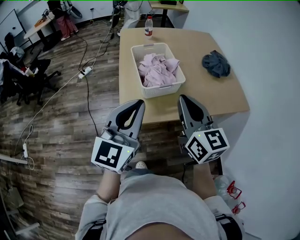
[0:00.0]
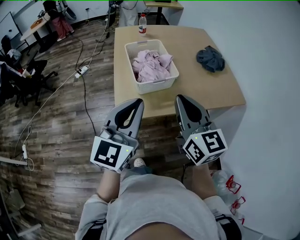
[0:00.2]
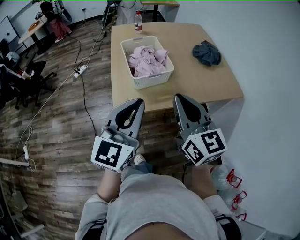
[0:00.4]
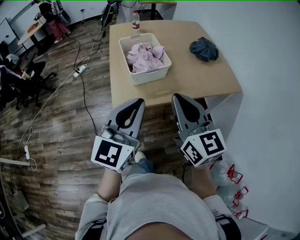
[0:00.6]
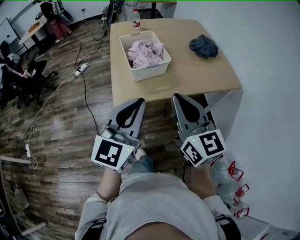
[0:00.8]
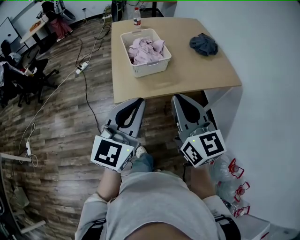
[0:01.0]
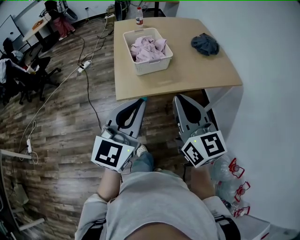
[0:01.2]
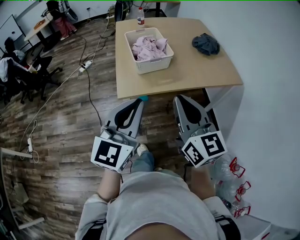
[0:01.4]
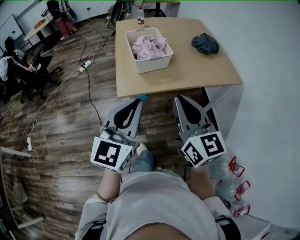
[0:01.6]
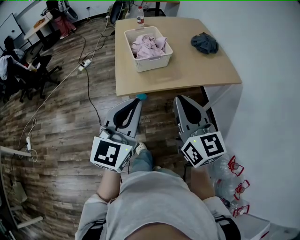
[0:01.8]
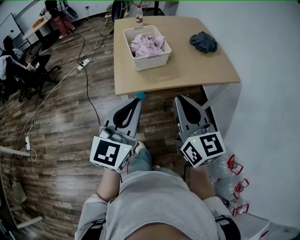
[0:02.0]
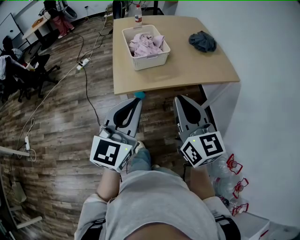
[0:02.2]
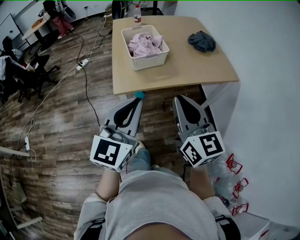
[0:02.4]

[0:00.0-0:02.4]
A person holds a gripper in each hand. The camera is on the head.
0:00.0 to 0:01.2: The left gripper travels backward and to the right by some 15 cm, while the right gripper heads backward, covering approximately 15 cm.
0:01.2 to 0:02.4: The grippers move only a little.

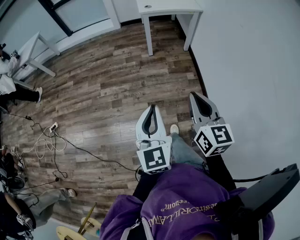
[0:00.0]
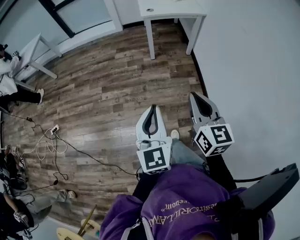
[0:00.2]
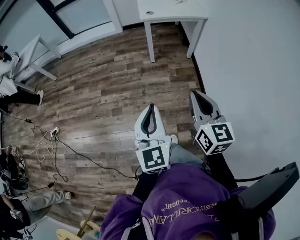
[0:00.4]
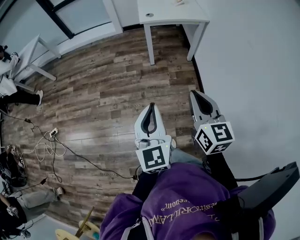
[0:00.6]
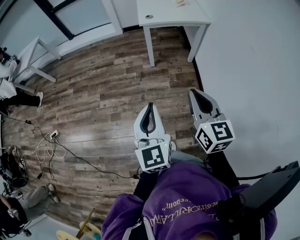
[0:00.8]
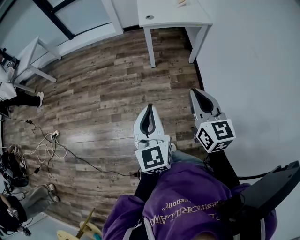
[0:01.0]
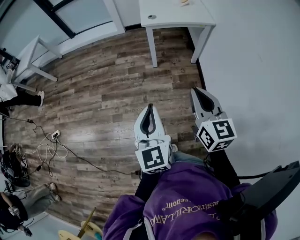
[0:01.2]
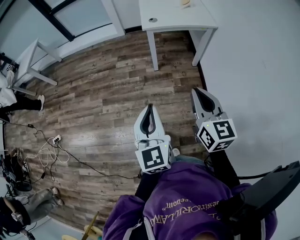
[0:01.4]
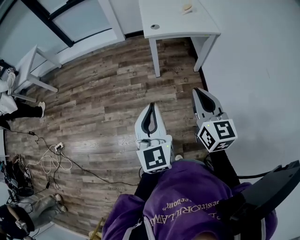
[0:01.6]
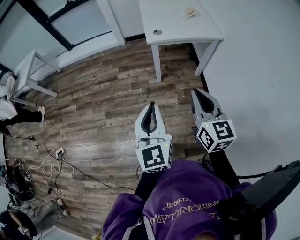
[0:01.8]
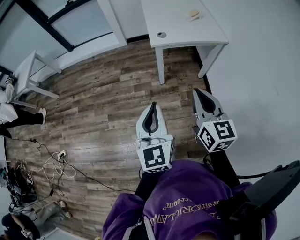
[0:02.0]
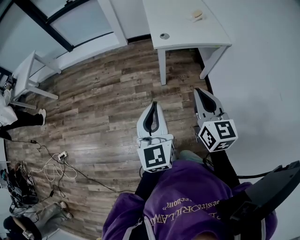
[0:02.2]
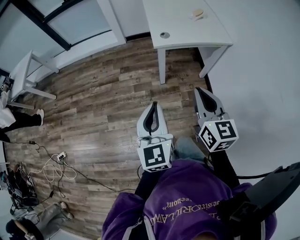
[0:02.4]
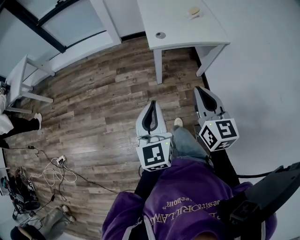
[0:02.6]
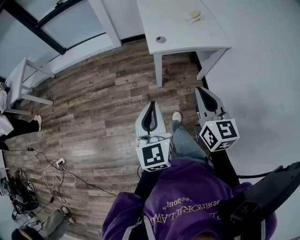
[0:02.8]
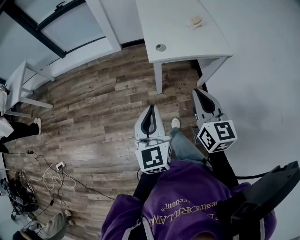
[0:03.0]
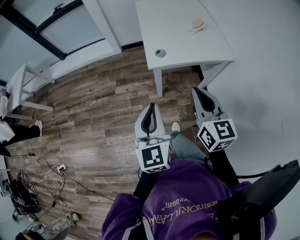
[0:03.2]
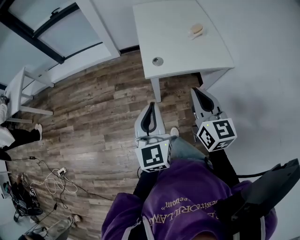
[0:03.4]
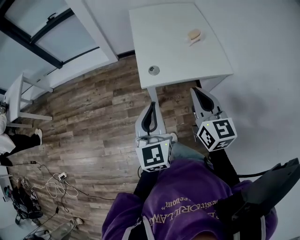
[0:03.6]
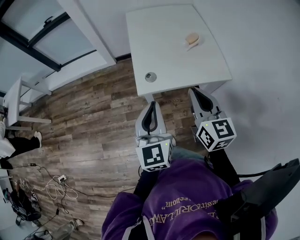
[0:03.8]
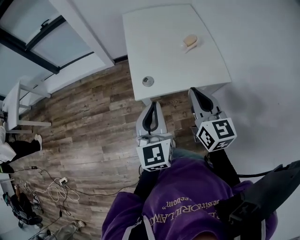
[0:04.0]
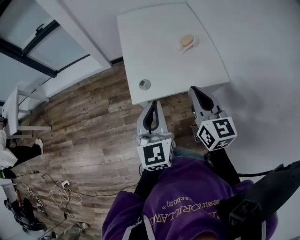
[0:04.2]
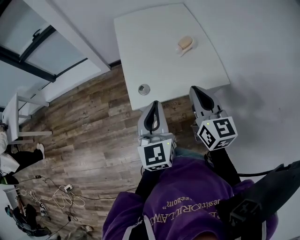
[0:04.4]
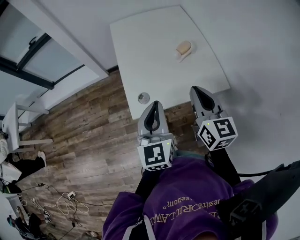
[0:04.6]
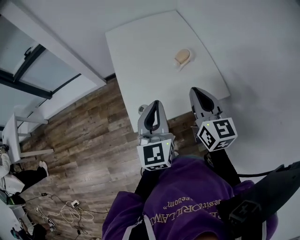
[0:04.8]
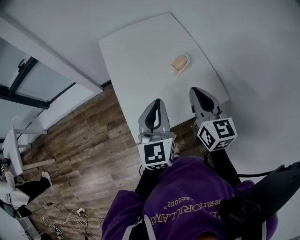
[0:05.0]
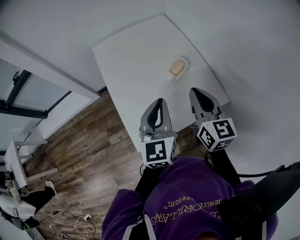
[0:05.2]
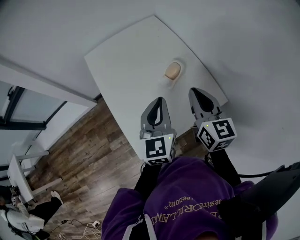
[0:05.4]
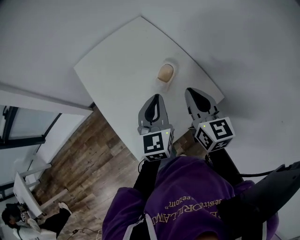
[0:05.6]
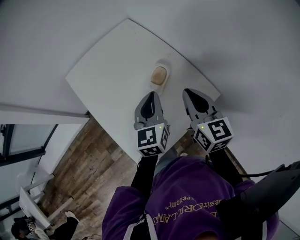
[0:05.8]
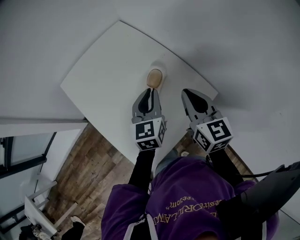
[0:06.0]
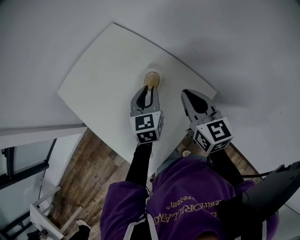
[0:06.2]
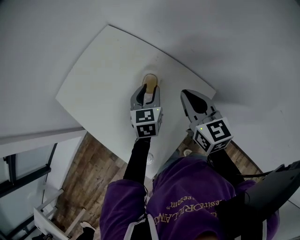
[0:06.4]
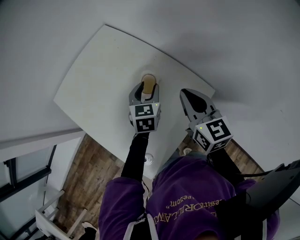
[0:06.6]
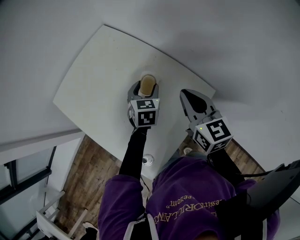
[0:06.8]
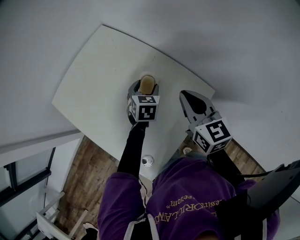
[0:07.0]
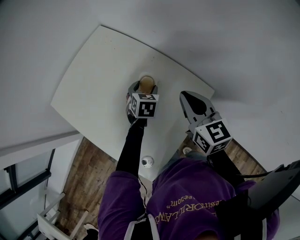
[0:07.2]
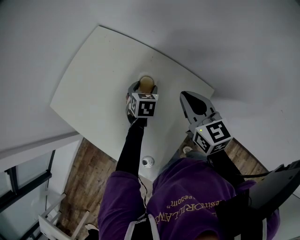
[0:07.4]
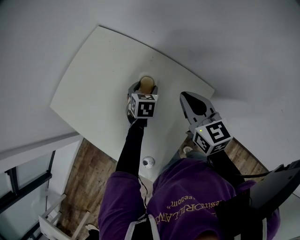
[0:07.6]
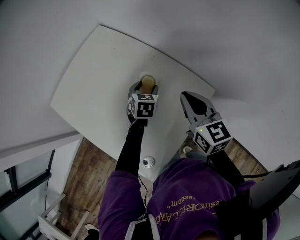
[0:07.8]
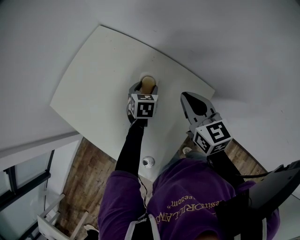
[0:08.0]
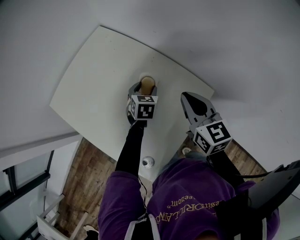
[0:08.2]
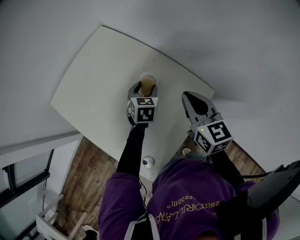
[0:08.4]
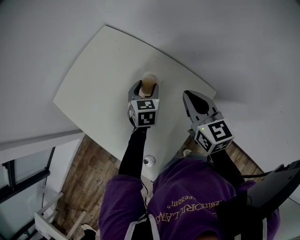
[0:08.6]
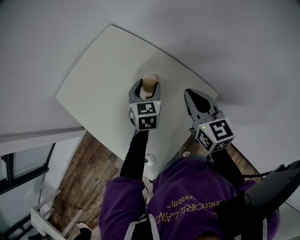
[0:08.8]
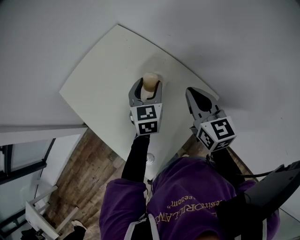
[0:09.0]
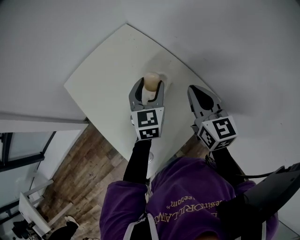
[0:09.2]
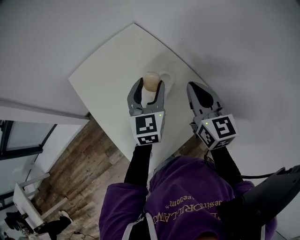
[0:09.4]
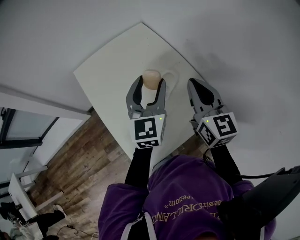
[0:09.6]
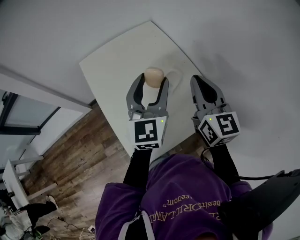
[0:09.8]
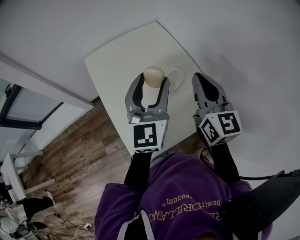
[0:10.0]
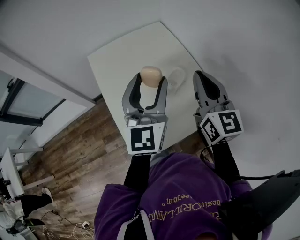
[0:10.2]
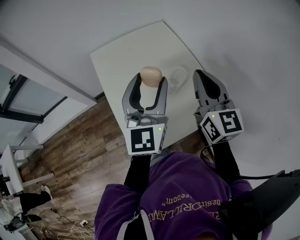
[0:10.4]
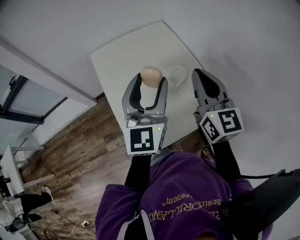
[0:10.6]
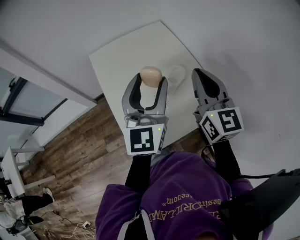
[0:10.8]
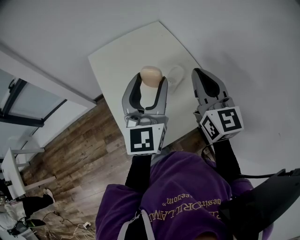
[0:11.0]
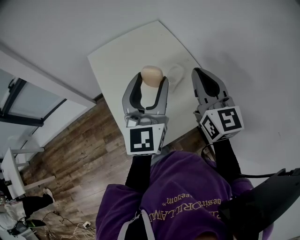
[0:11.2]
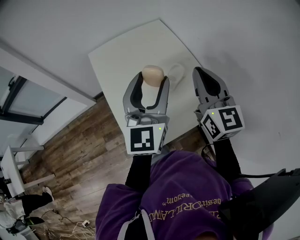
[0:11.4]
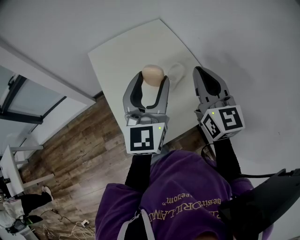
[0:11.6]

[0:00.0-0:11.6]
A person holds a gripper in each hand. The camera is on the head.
0:00.0 to 0:01.4: The two grippers go some 30 cm forward.
0:01.4 to 0:02.8: Both grippers move forward, about 25 cm.
0:02.8 to 0:04.4: The grippers both shift forward and to the right by roughly 35 cm.
0:04.4 to 0:05.8: The right gripper changes place by roughly 25 cm, and swivels some 20 degrees; the left gripper ends up some 35 cm from where it was, and rotates some 30 degrees.
0:05.8 to 0:07.2: The right gripper ends up approximately 5 cm from where it was, while the left gripper goes about 20 cm downward and forward, angles its fingers downward, by approximately 40 degrees, and opens up.
0:07.2 to 0:08.8: The left gripper goes approximately 10 cm upward, and turns by about 20 degrees.
0:08.8 to 0:10.2: The right gripper heads upward and to the left, covering about 15 cm, and rotates roughly 20 degrees. The left gripper is displaced upward, backward and to the left by roughly 30 cm, and tips its fingers upward by roughly 40 degrees.
0:10.2 to 0:11.6: The grippers make only small movements.

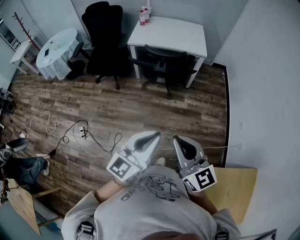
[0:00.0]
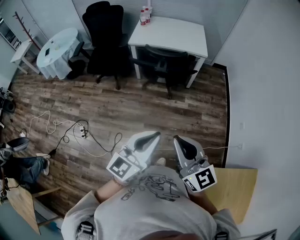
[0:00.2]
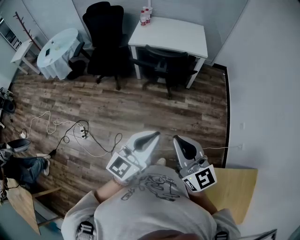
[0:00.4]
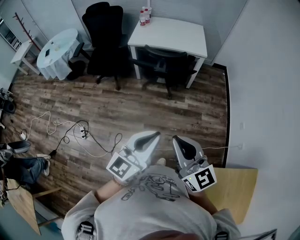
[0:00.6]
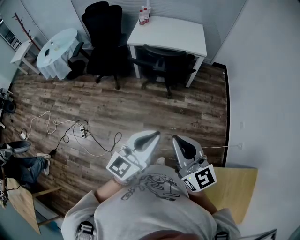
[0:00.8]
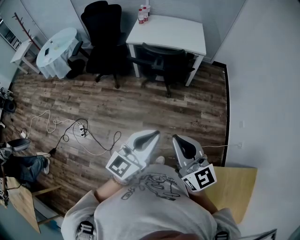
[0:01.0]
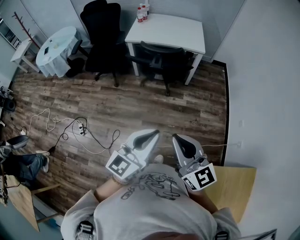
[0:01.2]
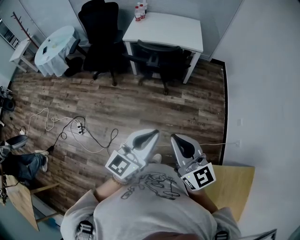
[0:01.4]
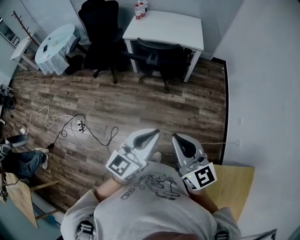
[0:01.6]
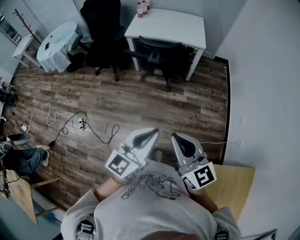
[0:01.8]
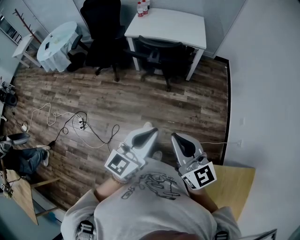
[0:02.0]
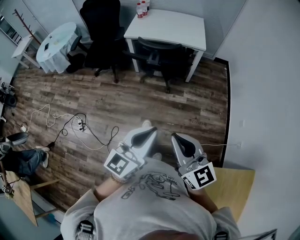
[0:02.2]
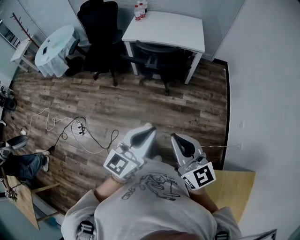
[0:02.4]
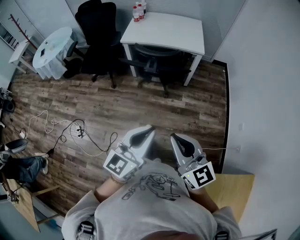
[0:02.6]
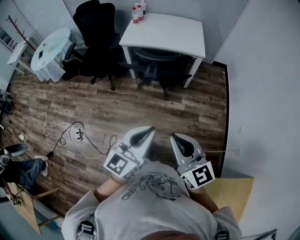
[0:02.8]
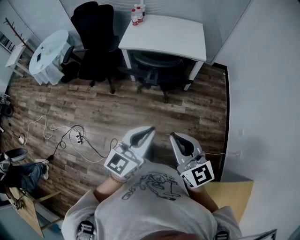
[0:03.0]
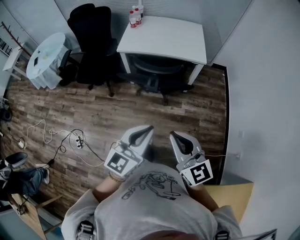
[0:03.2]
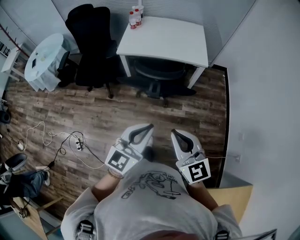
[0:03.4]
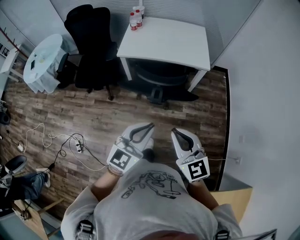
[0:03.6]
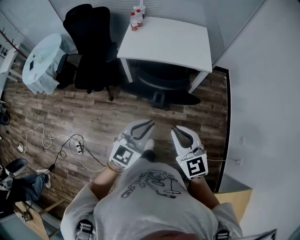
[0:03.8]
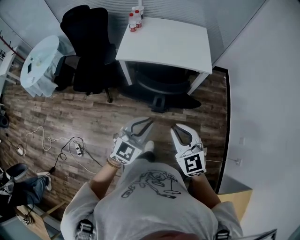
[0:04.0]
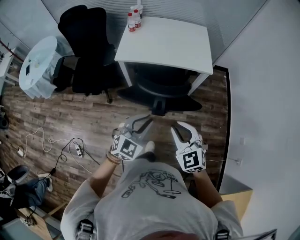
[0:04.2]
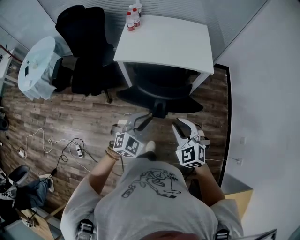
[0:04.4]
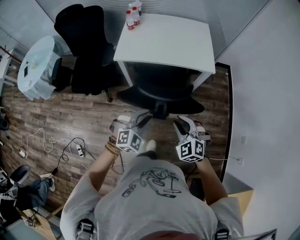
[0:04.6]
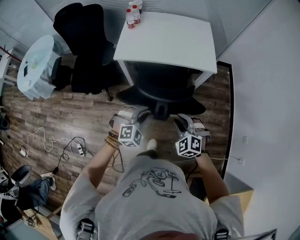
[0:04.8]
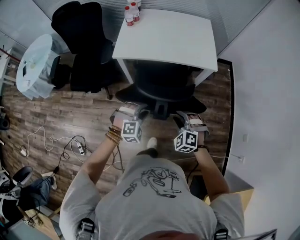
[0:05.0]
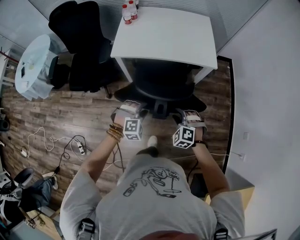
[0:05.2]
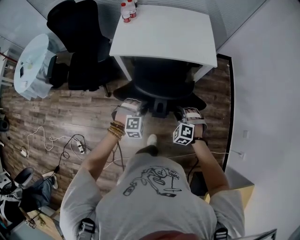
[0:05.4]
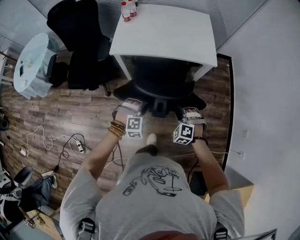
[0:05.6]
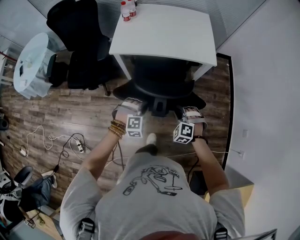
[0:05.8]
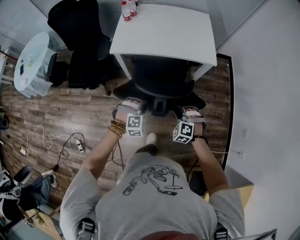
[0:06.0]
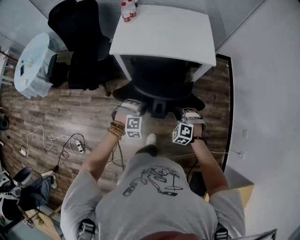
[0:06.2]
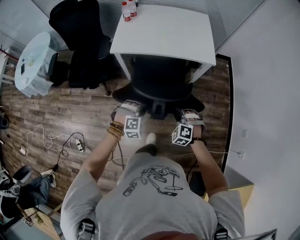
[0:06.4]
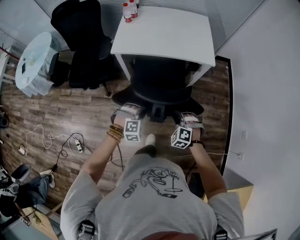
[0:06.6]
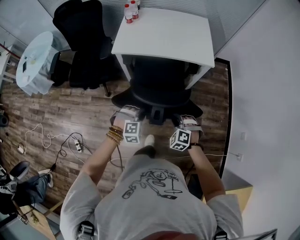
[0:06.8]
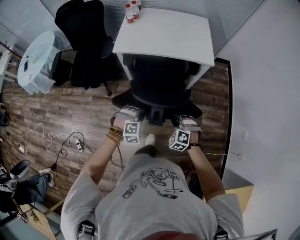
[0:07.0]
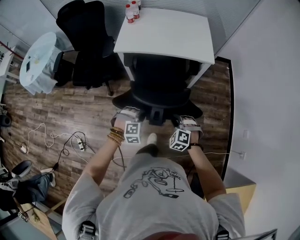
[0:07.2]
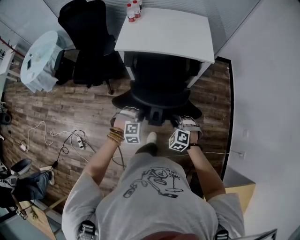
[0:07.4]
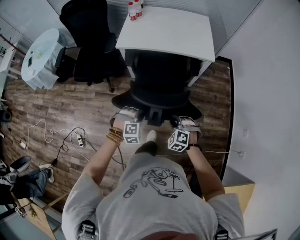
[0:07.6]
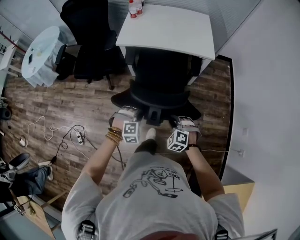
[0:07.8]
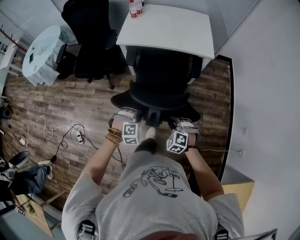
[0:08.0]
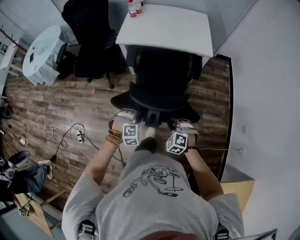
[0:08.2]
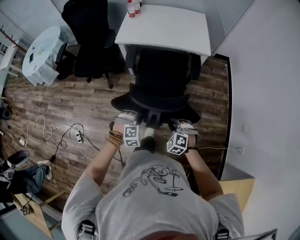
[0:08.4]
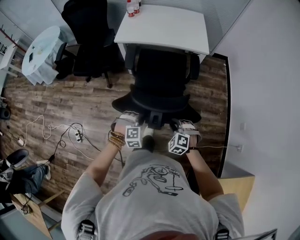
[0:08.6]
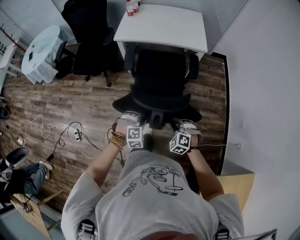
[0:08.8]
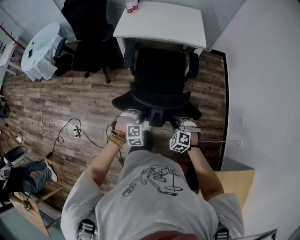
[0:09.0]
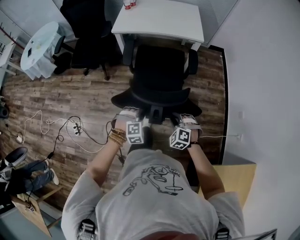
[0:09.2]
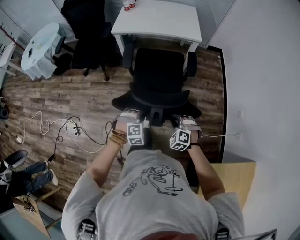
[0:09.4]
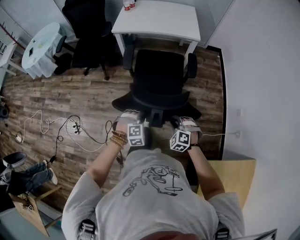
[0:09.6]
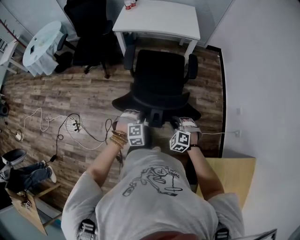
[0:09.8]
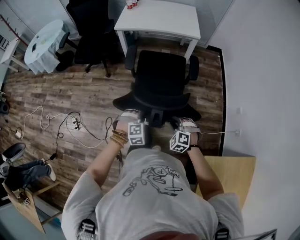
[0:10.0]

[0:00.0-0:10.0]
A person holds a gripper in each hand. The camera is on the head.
0:00.0 to 0:01.4: The grippers both shift to the right by roughly 5 cm.
0:01.4 to 0:02.8: Both grippers move forward, about 15 cm.
0:02.8 to 0:04.2: Both grippers move forward, approximately 35 cm. The left gripper swivels approximately 40 degrees; the right gripper changes its angle by some 30 degrees.
0:04.2 to 0:05.8: The grippers both shift downward and forward by some 25 cm. The right gripper rotates some 40 degrees, while the left gripper angles its fingers downward, by roughly 30 degrees.
0:05.8 to 0:07.2: Both grippers travel together backward, some 10 cm.
0:07.2 to 0:08.6: The grippers both shift backward by some 15 cm.
0:08.6 to 0:10.0: The grippers both shift backward by about 20 cm.
